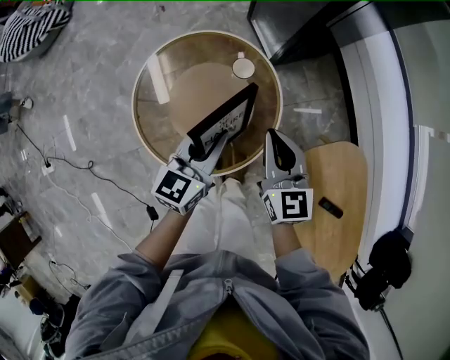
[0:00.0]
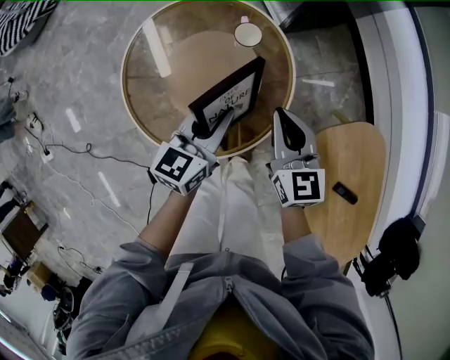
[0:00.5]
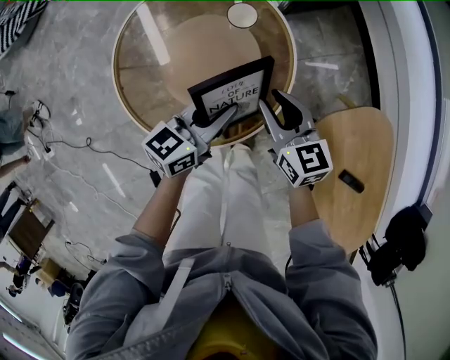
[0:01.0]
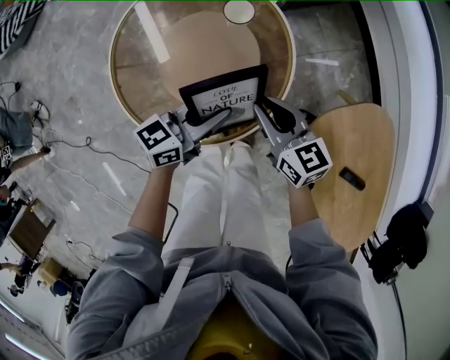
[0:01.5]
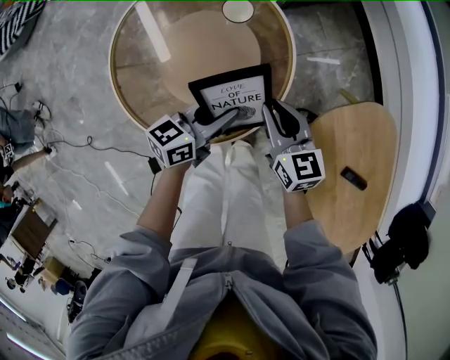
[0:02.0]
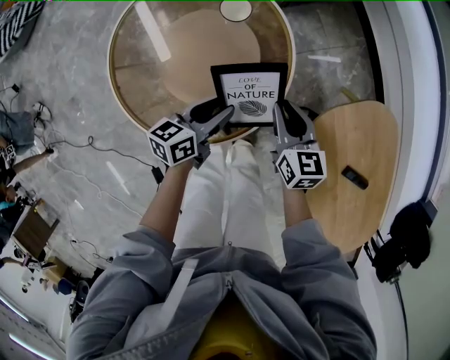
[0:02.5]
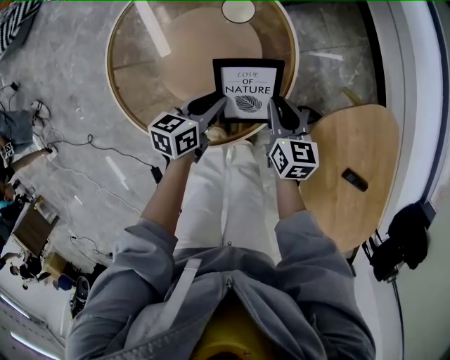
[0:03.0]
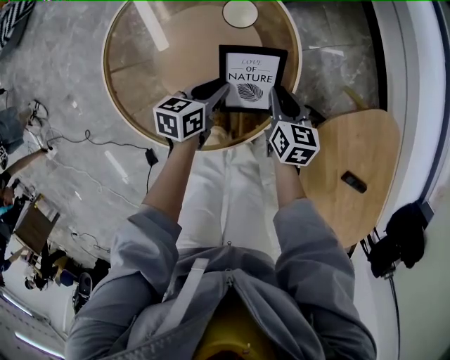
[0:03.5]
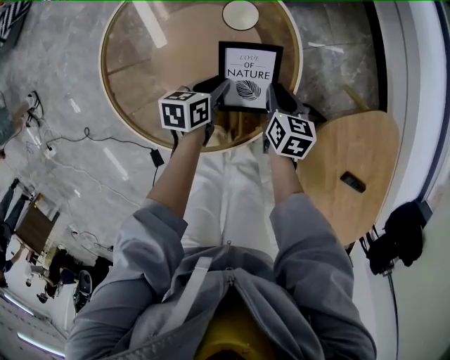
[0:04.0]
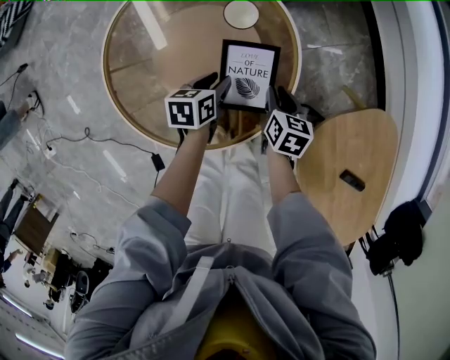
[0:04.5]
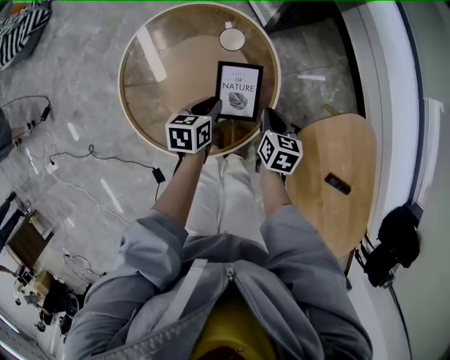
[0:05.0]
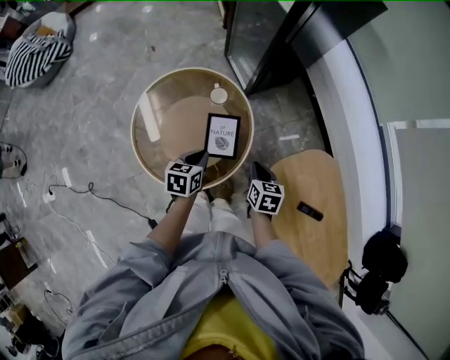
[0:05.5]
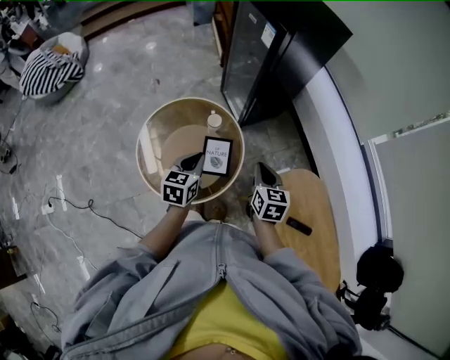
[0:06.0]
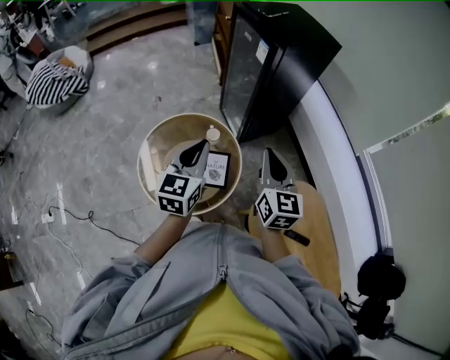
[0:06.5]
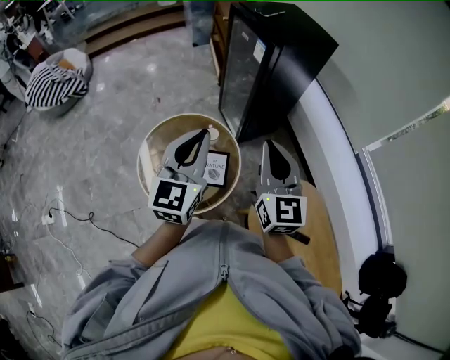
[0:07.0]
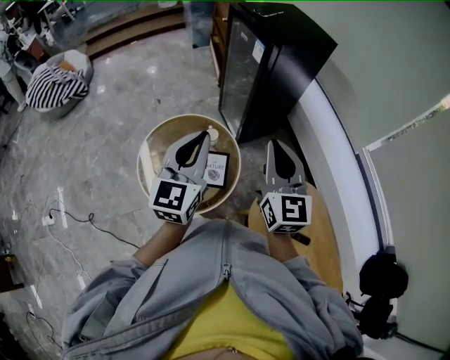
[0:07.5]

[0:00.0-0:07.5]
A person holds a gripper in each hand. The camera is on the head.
0:00.0 to 0:02.0: Both grippers move downward, roughly 15 cm. The left gripper changes its angle by approximately 30 degrees.
0:02.0 to 0:04.0: The right gripper is displaced downward and forward by roughly 15 cm, and swivels approximately 30 degrees. Meanwhile the left gripper moves downward, some 15 cm, and angles its fingers downward, by approximately 30 degrees.
0:04.0 to 0:05.5: The two grippers go approximately 25 cm upward. The left gripper closes its fingers.
0:05.5 to 0:07.5: The grippers both shift upward by roughly 40 cm. The right gripper tilts its fingers approximately 50 degrees upward, while the left gripper points its fingers about 40 degrees further upward.

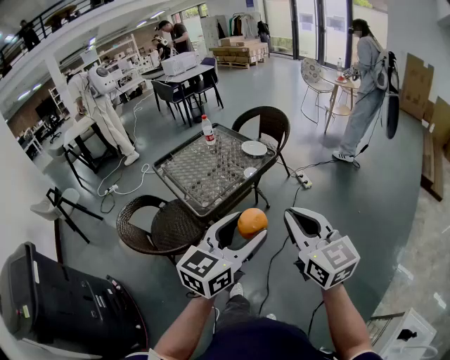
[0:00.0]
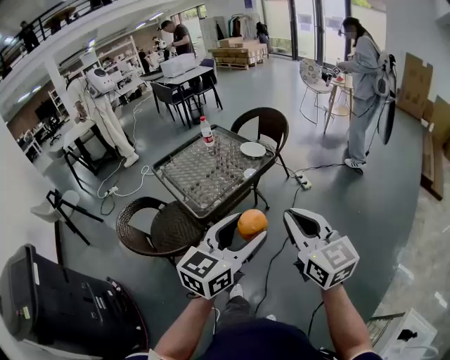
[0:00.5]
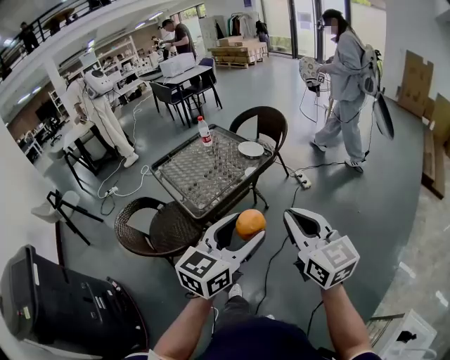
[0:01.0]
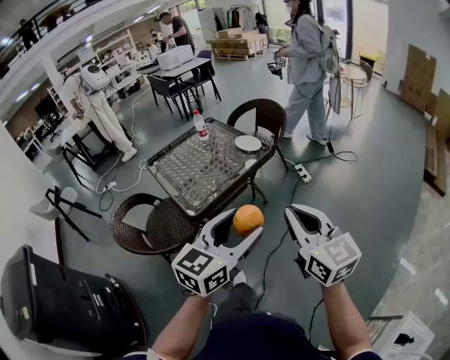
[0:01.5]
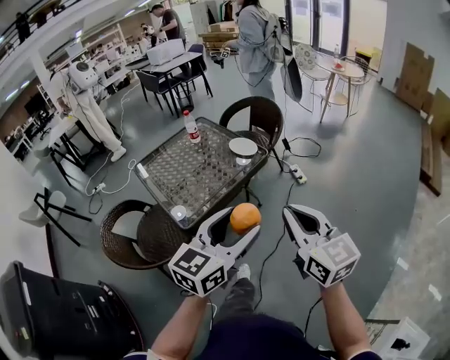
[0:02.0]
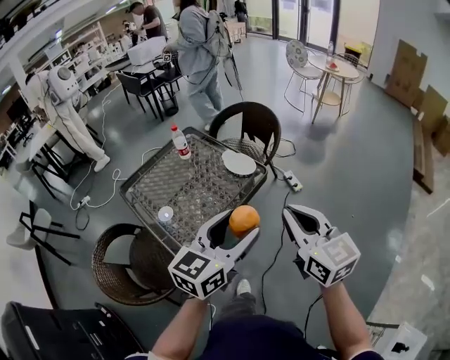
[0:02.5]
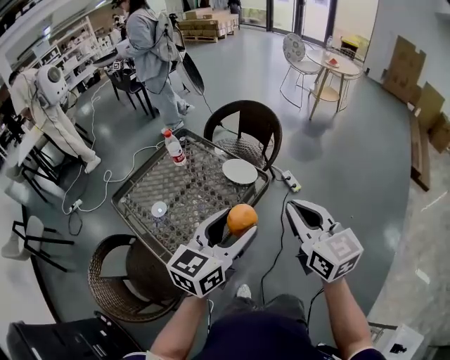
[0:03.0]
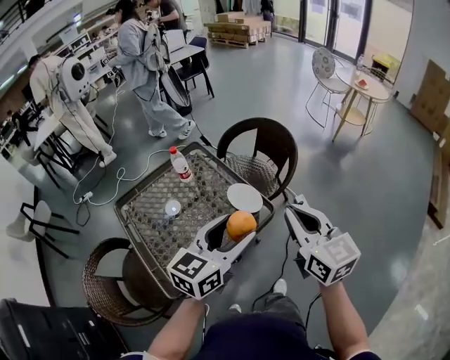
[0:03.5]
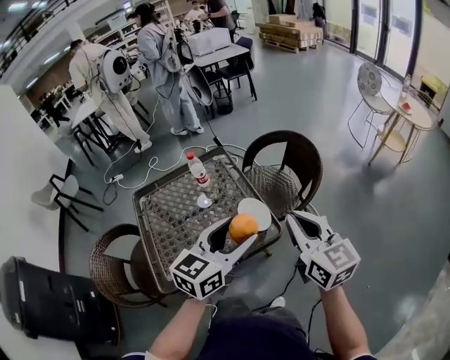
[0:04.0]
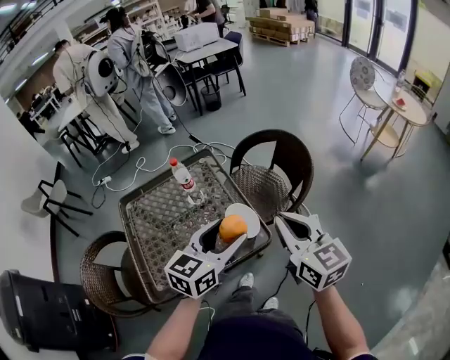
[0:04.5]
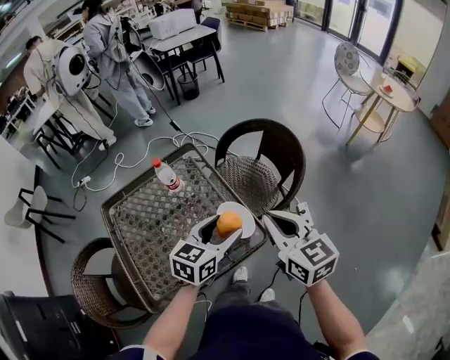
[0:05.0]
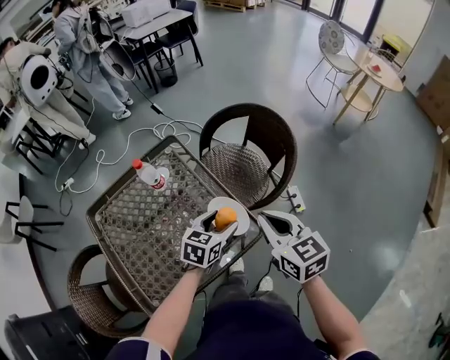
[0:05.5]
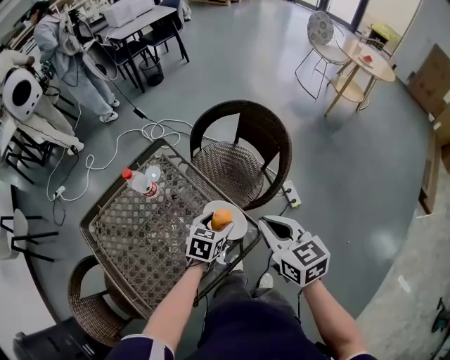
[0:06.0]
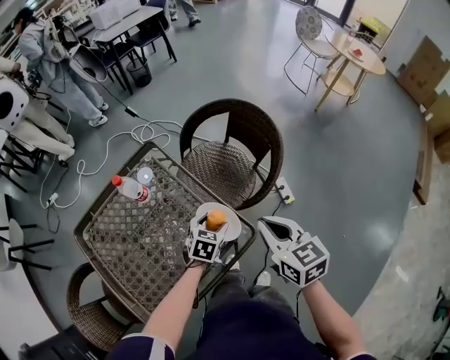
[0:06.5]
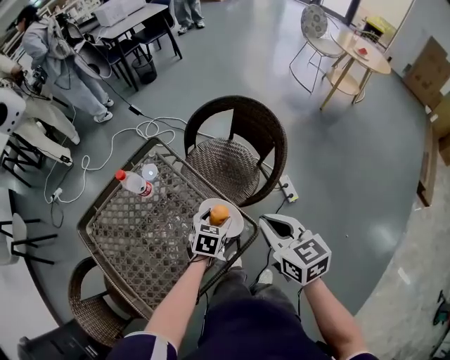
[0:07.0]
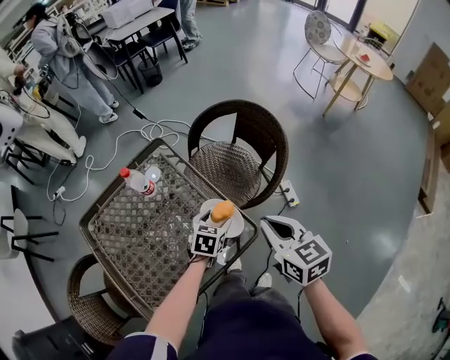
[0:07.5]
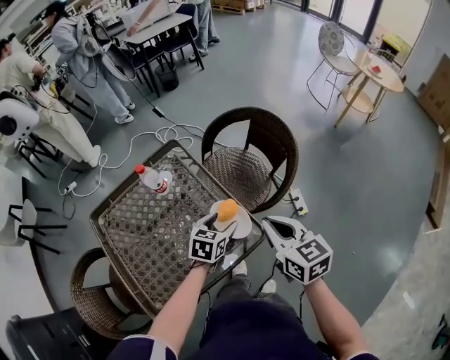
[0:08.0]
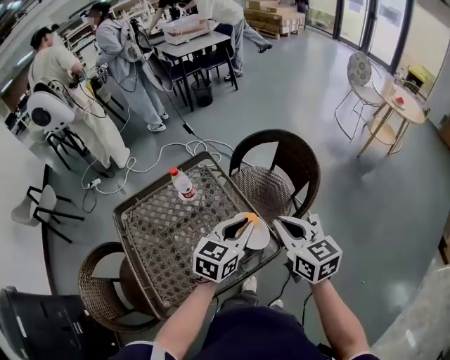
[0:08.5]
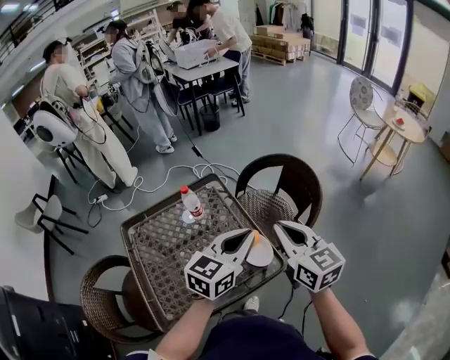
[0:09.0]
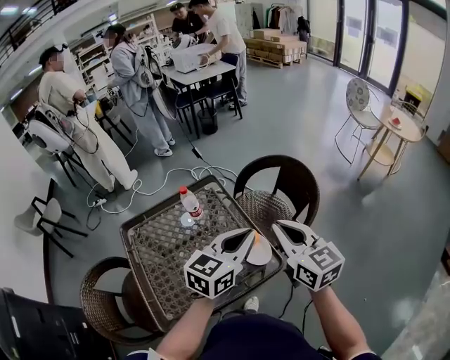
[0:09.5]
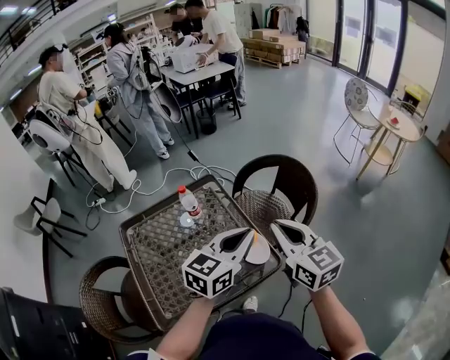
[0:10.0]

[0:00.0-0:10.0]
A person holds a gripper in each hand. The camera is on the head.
0:00.0 to 0:02.0: The grippers both shift forward by roughly 10 cm.
0:02.0 to 0:04.0: The pair of grippers is taken forward, approximately 40 cm.
0:04.0 to 0:06.0: The left gripper moves downward and forward, some 35 cm, and points its fingers about 30 degrees further downward. The right gripper travels downward and forward by approximately 20 cm, and turns by some 20 degrees.
0:06.0 to 0:08.0: There are only small adjustments of the grippers.
0:08.0 to 0:10.0: The left gripper travels upward by about 25 cm, tilts its fingers some 30 degrees upward, and closes up. The right gripper goes approximately 10 cm upward, and swivels approximately 20 degrees.

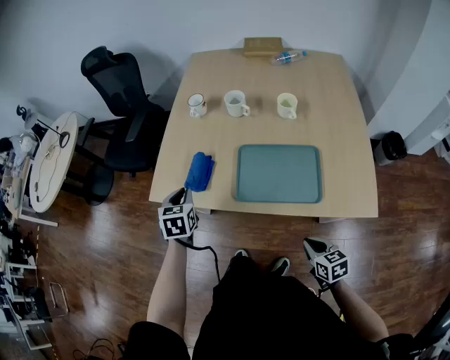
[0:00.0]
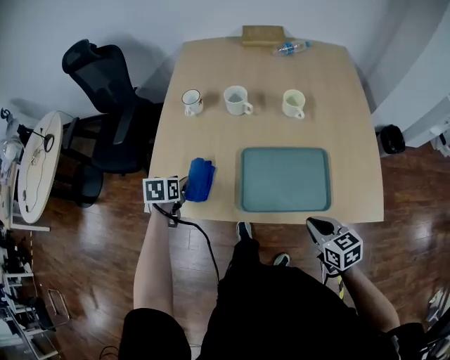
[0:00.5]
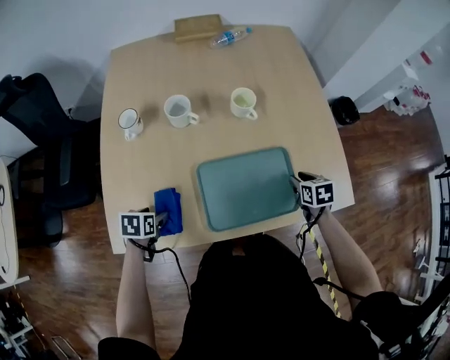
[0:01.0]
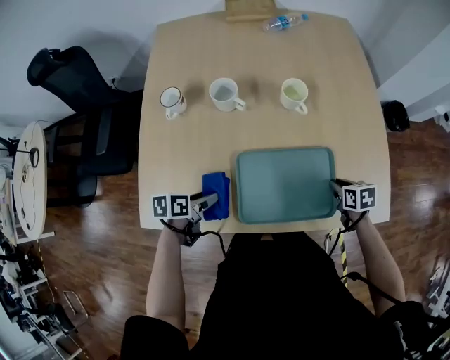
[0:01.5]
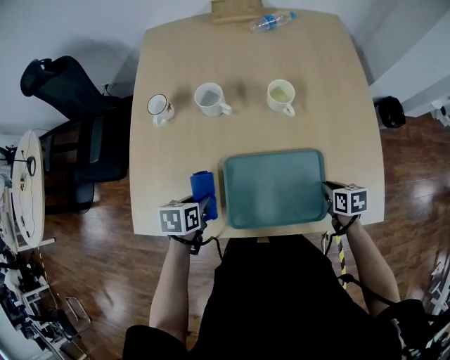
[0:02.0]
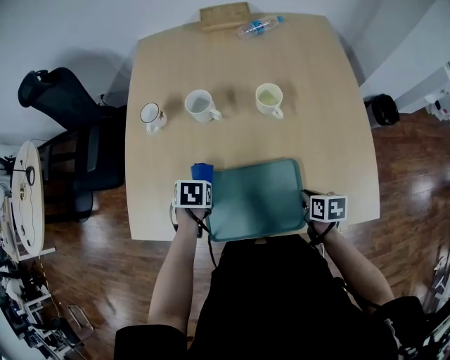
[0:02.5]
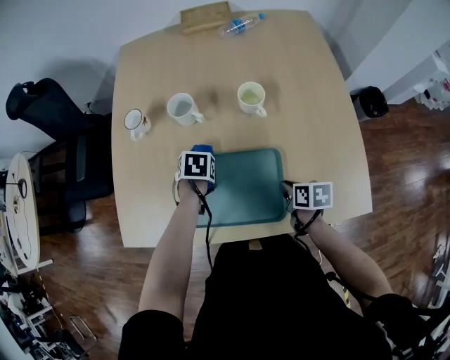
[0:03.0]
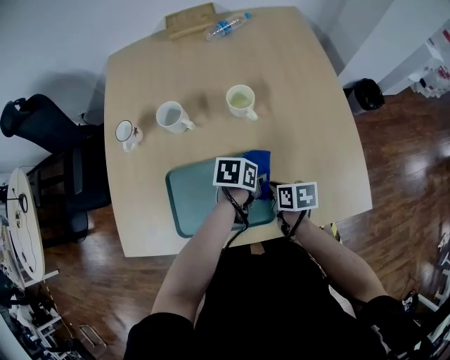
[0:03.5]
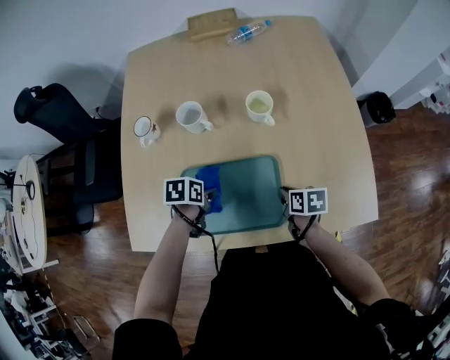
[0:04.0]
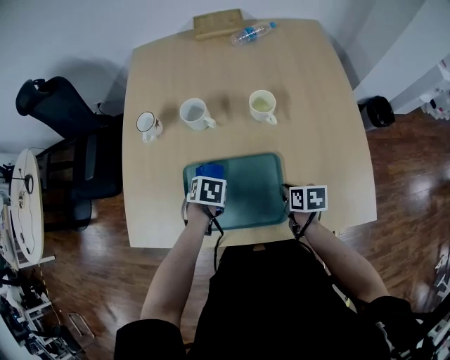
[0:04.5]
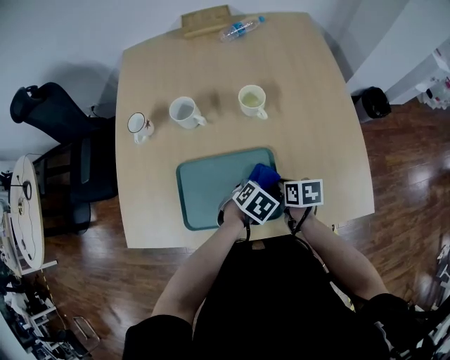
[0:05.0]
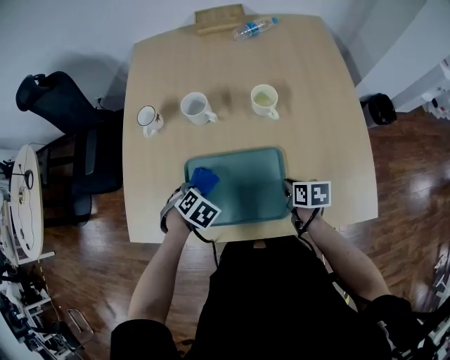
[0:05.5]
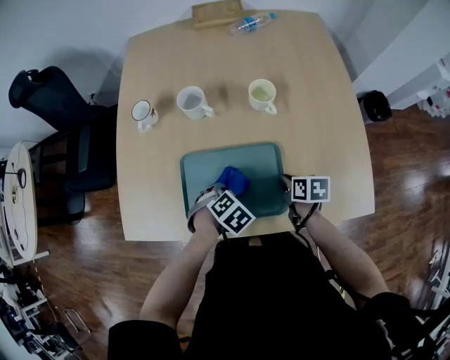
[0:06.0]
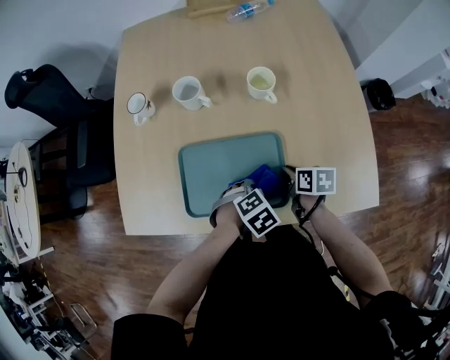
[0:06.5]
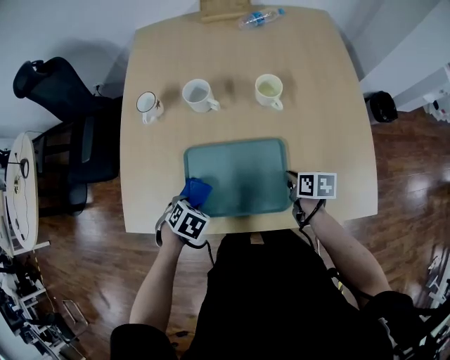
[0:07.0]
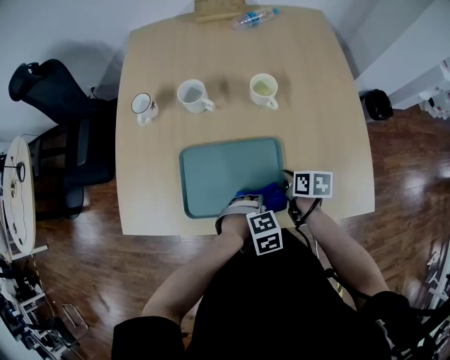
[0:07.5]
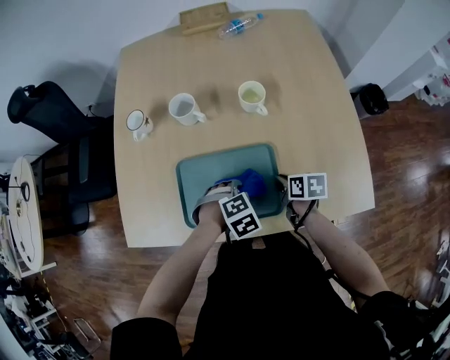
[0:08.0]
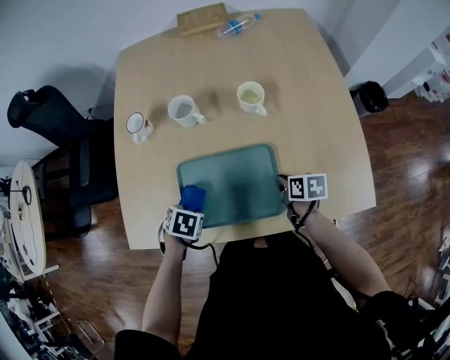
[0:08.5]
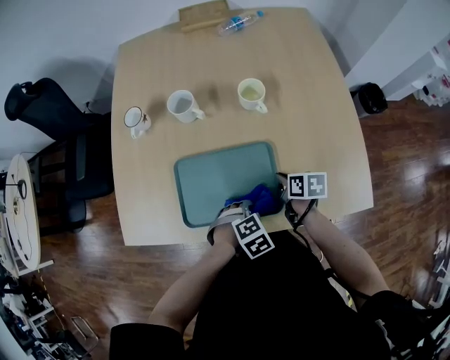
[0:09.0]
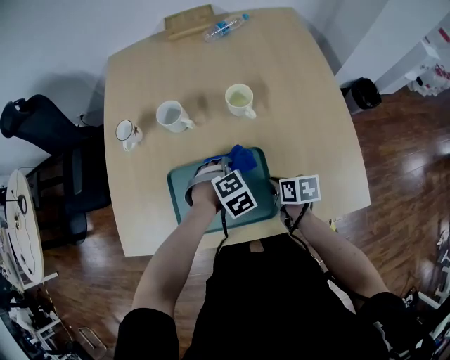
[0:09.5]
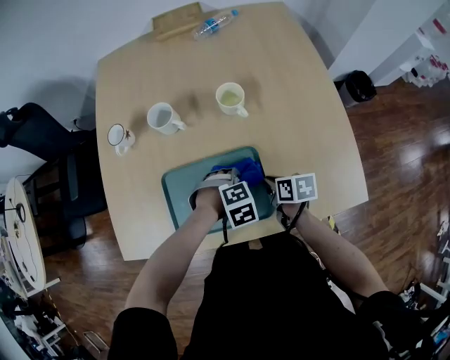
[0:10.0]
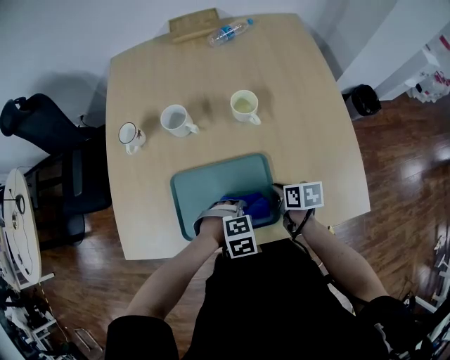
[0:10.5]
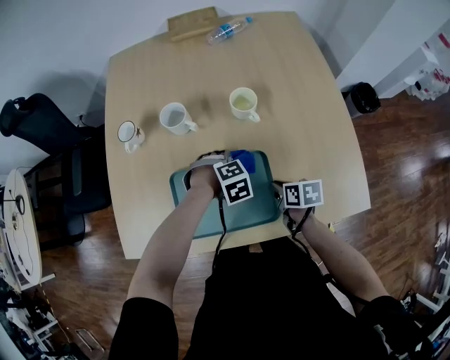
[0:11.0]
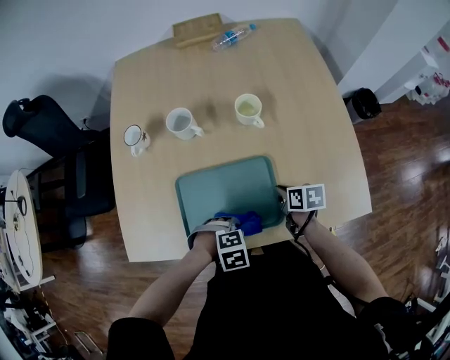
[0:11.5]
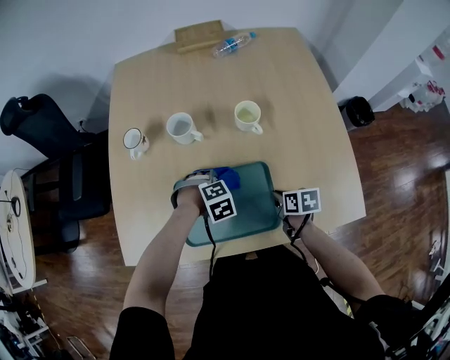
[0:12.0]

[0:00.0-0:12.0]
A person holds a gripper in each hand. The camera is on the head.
0:00.0 to 0:02.0: The right gripper changes place by roughly 25 cm, swivels some 30 degrees, and opens, then closes again.
0:02.0 to 0:04.0: The right gripper ends up roughly 10 cm from where it was.
